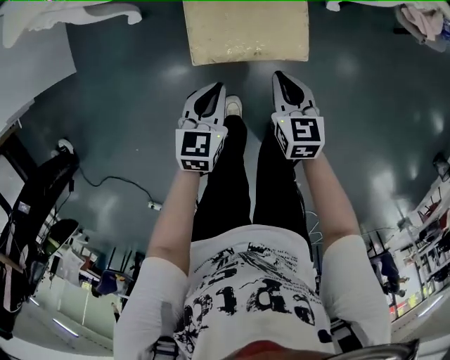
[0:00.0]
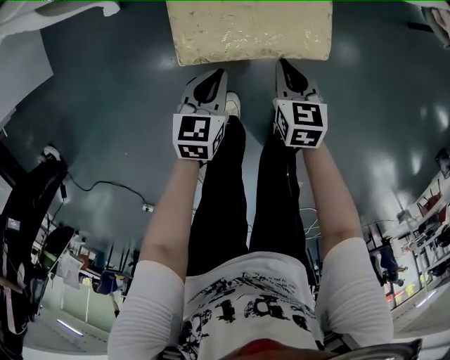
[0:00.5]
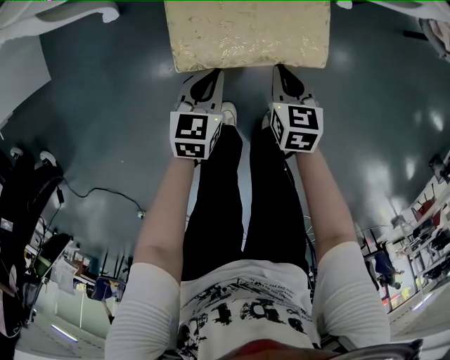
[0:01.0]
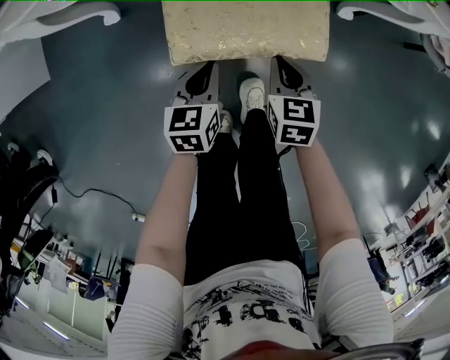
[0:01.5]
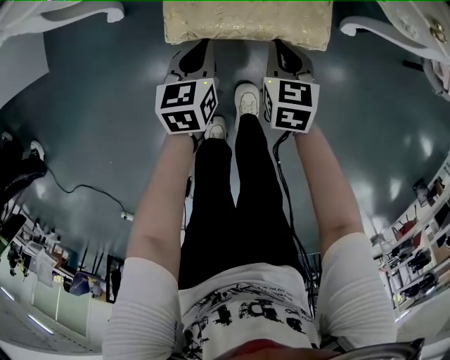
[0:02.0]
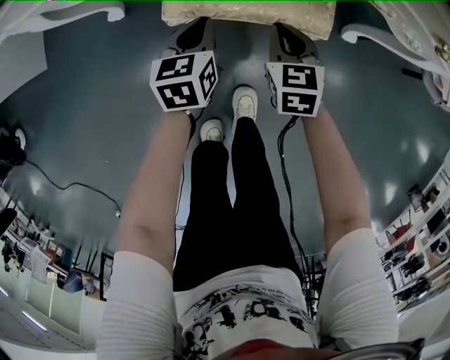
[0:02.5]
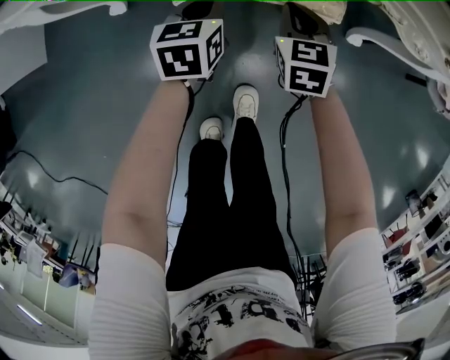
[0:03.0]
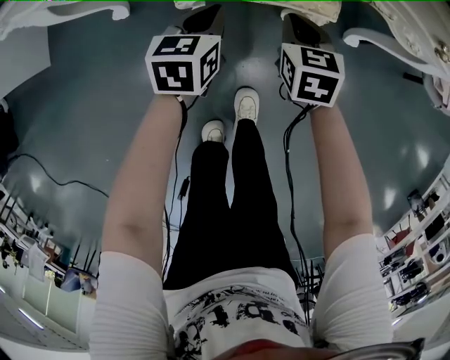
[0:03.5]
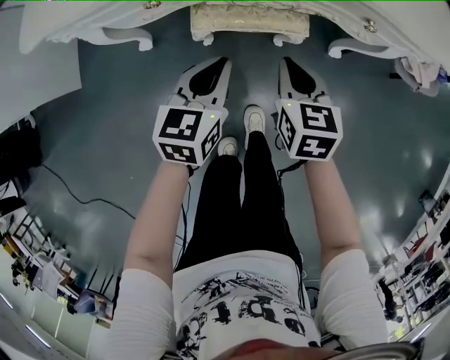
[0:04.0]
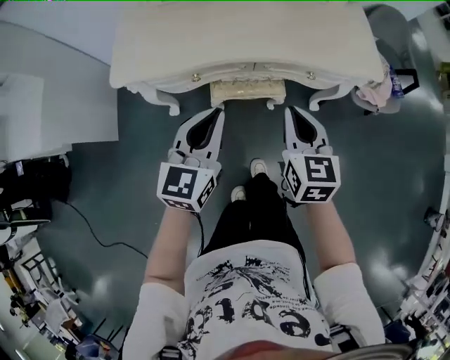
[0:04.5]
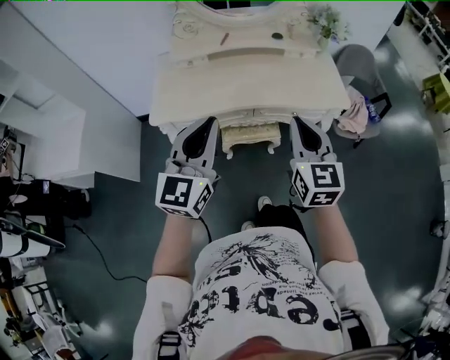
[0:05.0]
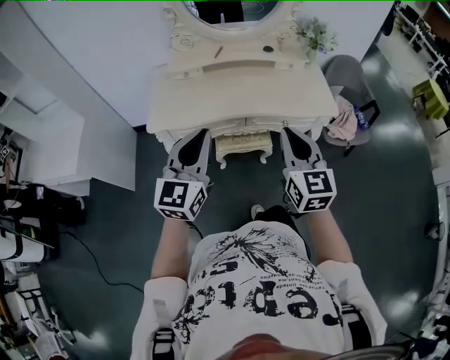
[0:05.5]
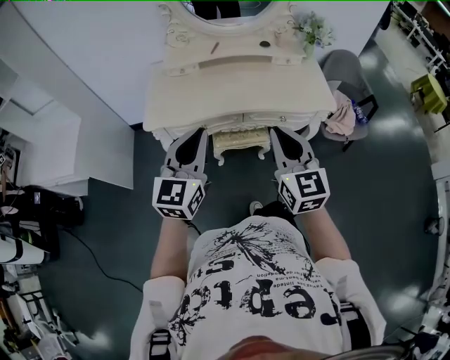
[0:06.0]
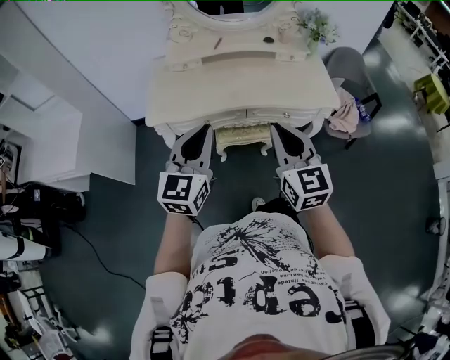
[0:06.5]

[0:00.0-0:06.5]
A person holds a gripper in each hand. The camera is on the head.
0:00.0 to 0:02.0: The two grippers go approximately 20 cm downward and forward.
0:02.0 to 0:04.5: The two grippers go roughly 50 cm upward. The right gripper turns by about 20 degrees. Meanwhile the left gripper swivels approximately 30 degrees.
0:04.5 to 0:06.5: The two grippers go some 20 cm upward. The right gripper turns by some 20 degrees.

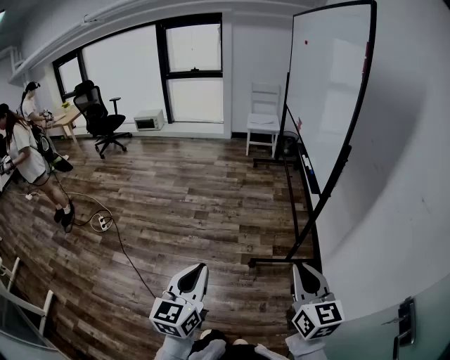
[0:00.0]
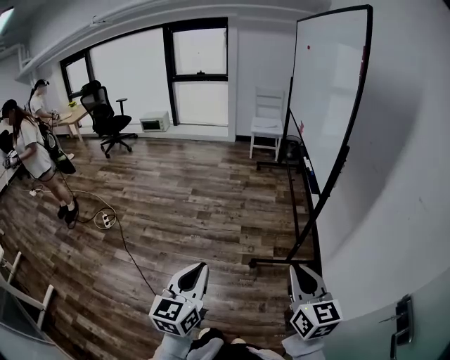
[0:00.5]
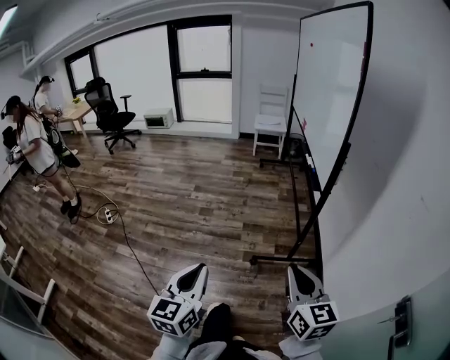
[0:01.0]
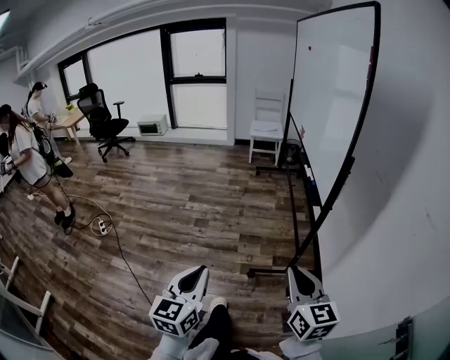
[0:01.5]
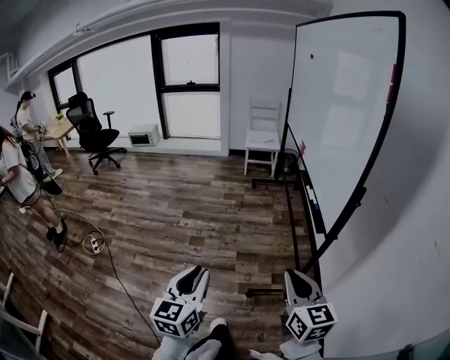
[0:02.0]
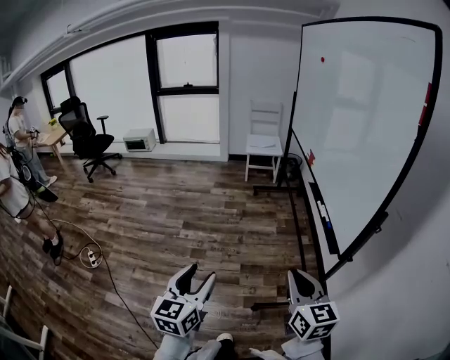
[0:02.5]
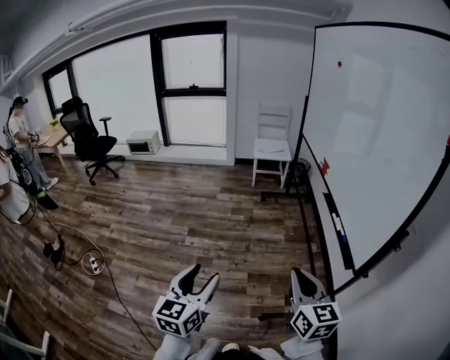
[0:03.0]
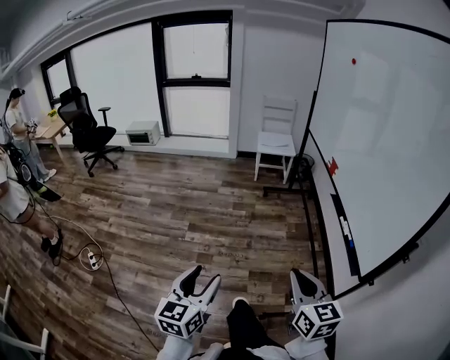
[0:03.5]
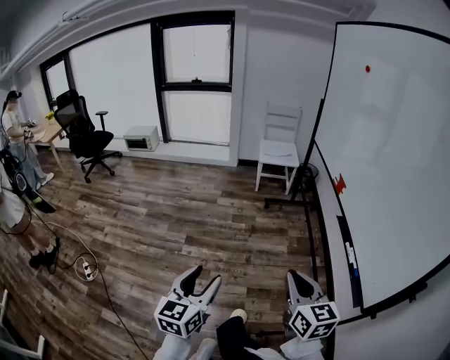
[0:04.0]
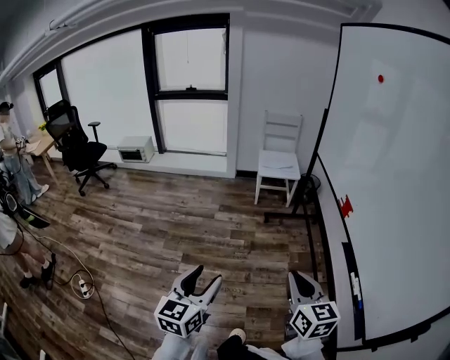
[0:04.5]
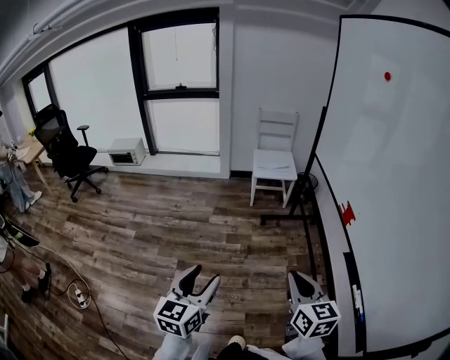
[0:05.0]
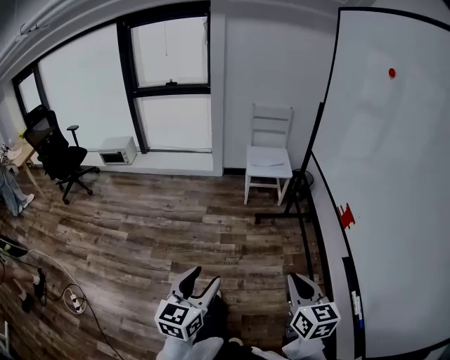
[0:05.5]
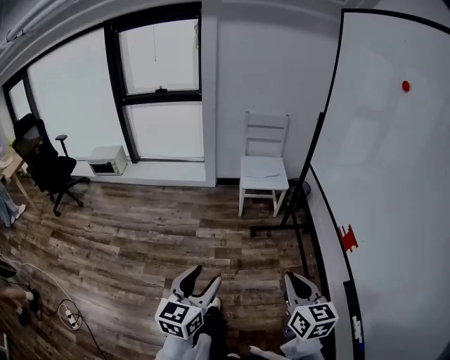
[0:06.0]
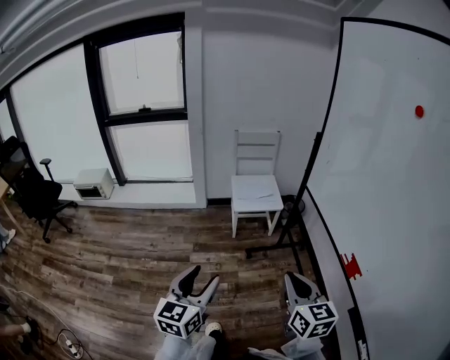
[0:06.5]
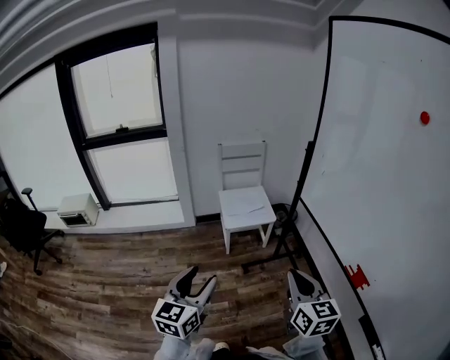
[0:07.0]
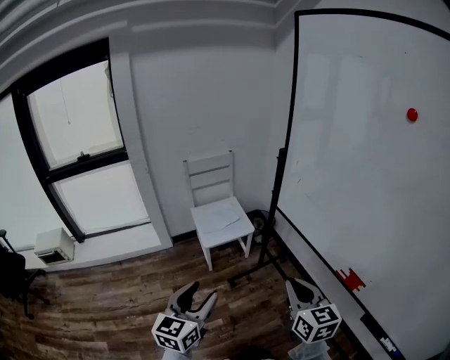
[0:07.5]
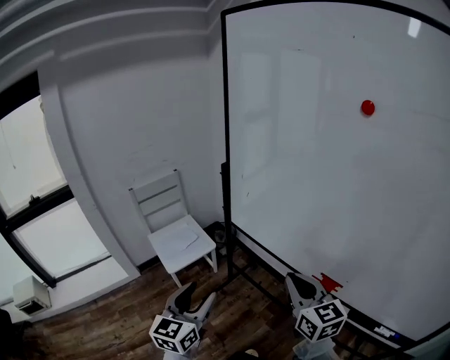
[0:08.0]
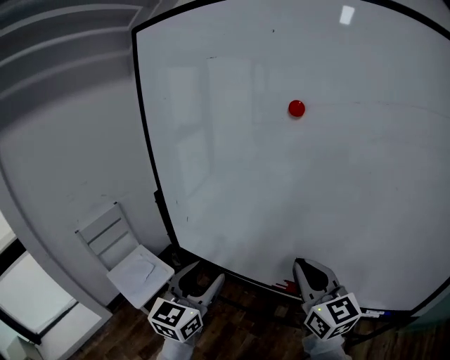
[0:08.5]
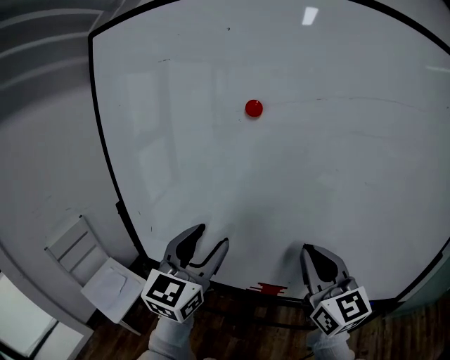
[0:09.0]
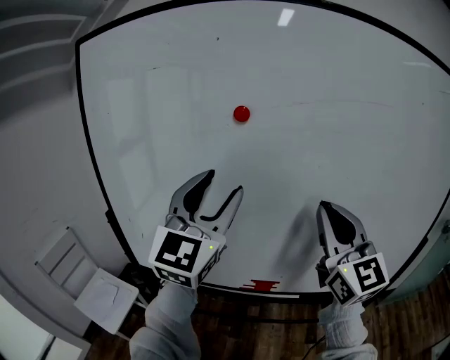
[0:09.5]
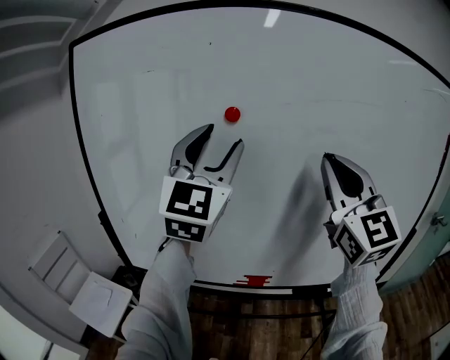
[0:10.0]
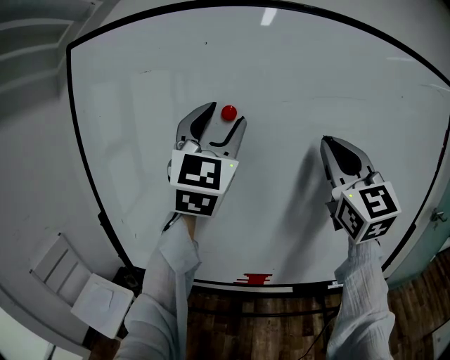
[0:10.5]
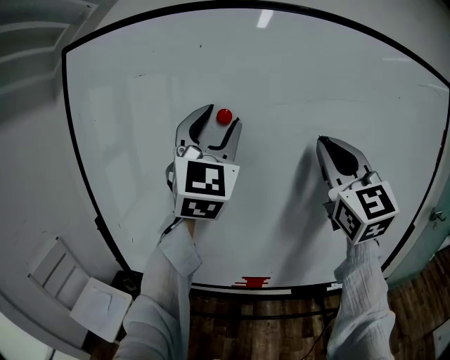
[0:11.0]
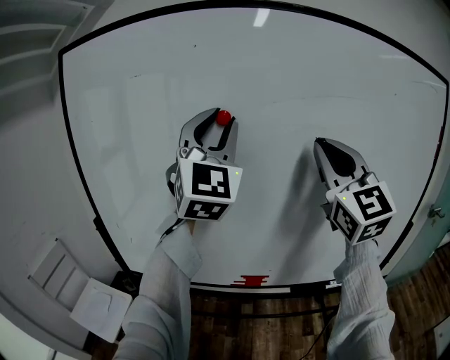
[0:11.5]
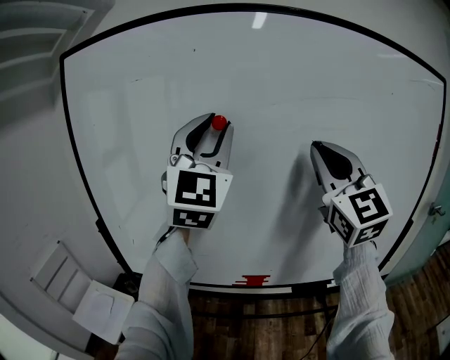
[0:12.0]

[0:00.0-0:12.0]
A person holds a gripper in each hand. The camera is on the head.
0:00.0 to 0:02.0: The grippers both shift forward by some 20 cm.
0:02.0 to 0:04.0: Both grippers move forward, approximately 35 cm. The left gripper opens up.
0:04.0 to 0:06.0: Both grippers travel together forward, roughly 40 cm.
0:06.0 to 0:08.0: The right gripper ends up roughly 30 cm from where it was, and swivels roughly 40 degrees. Meanwhile the left gripper ends up approximately 40 cm from where it was, and turns by roughly 40 degrees.
0:08.0 to 0:10.0: The two grippers go about 35 cm upward. The left gripper swivels approximately 60 degrees. Meanwhile the right gripper angles its fingers upward, by approximately 30 degrees.
0:10.0 to 0:12.0: The left gripper closes its fingers.

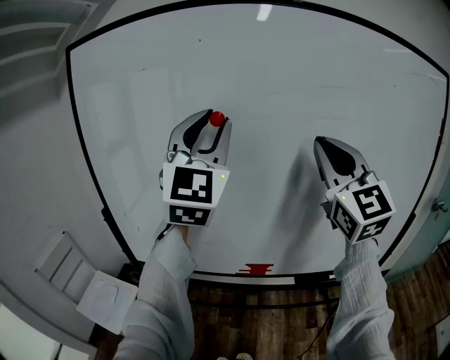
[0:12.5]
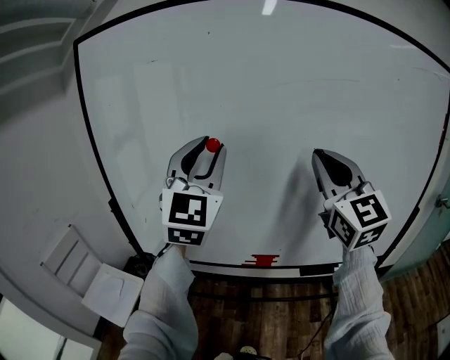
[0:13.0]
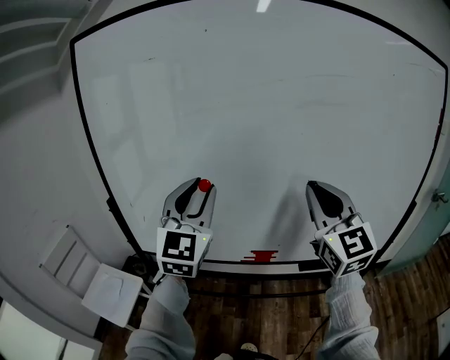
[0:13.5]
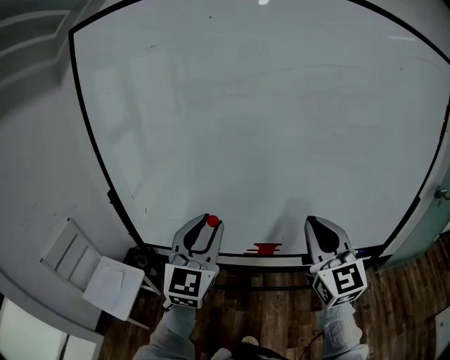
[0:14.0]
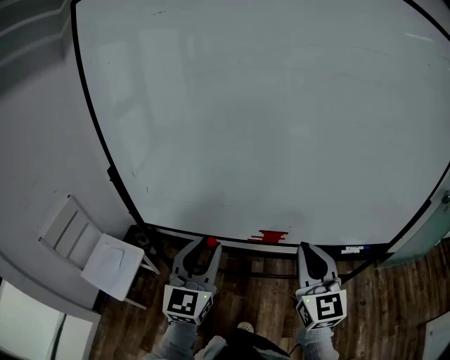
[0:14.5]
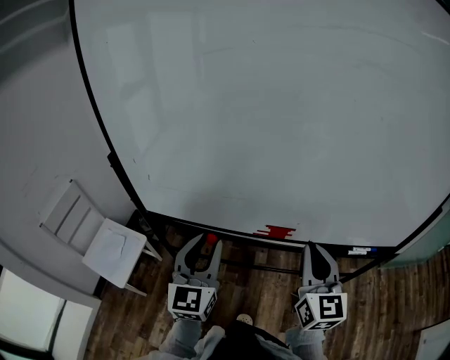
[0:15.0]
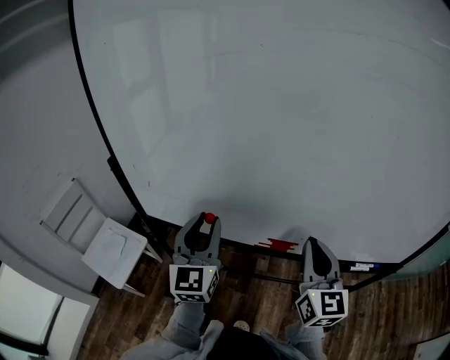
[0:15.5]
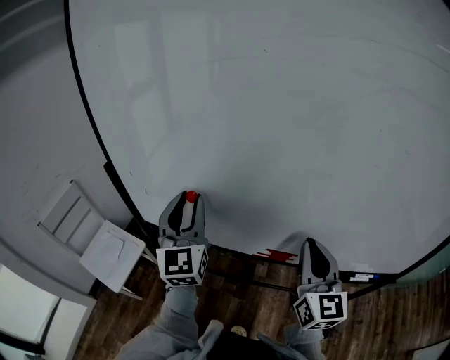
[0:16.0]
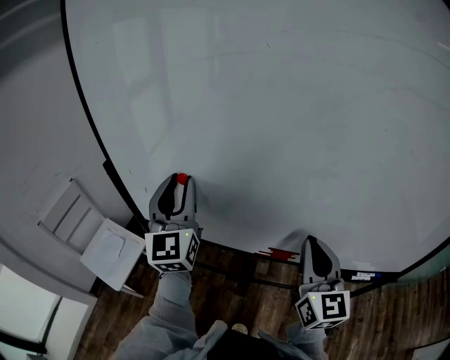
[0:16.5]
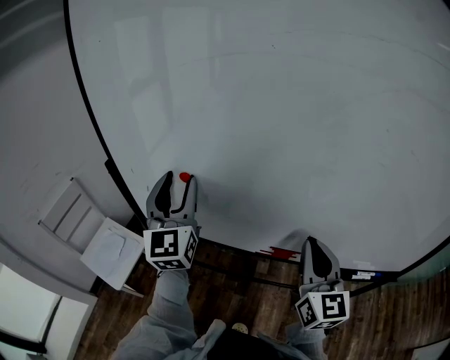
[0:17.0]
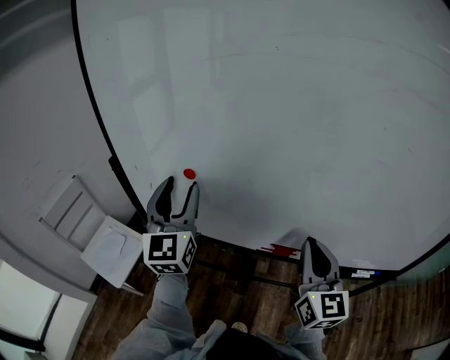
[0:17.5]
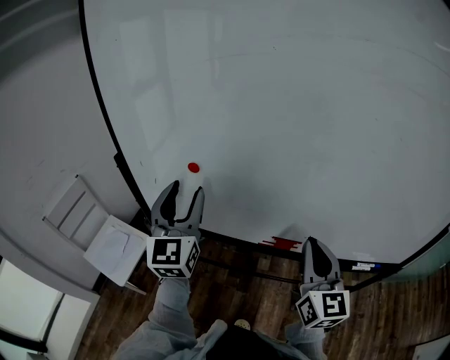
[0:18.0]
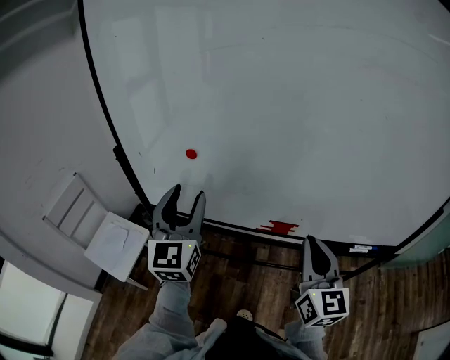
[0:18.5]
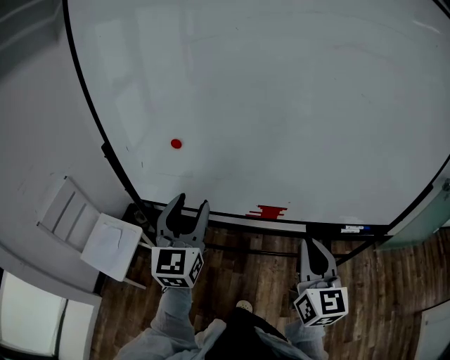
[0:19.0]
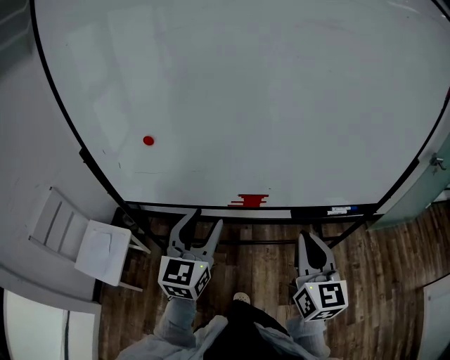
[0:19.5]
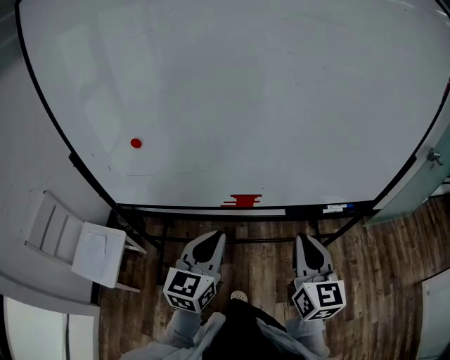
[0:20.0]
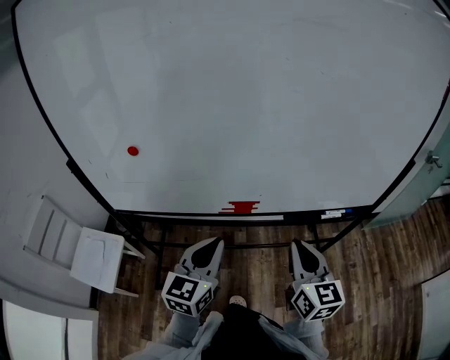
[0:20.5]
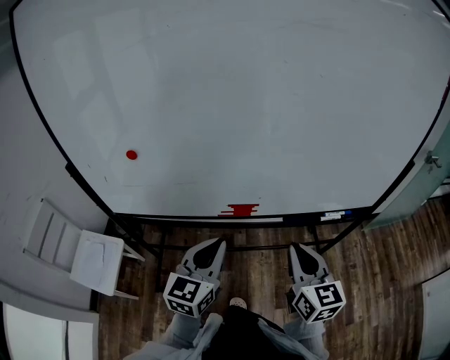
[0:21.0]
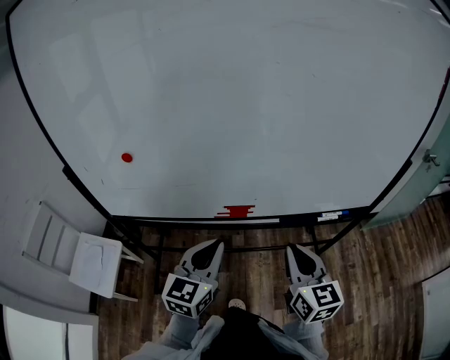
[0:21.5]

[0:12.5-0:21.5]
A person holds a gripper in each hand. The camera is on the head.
0:12.5 to 0:14.5: Both grippers move downward, about 35 cm. The left gripper changes its angle by some 30 degrees. Meanwhile the right gripper swivels about 30 degrees.
0:14.5 to 0:17.0: The left gripper heads forward, to the left and upward, covering about 20 cm, and rotates approximately 20 degrees; the right gripper is displaced forward by about 10 cm.
0:17.0 to 0:19.5: The right gripper shifts some 15 cm backward, while the left gripper travels backward, to the right and downward by roughly 25 cm, and changes its angle by some 30 degrees.
0:19.5 to 0:21.5: The right gripper changes place by some 5 cm. The left gripper goes about 5 cm to the right, and closes up.
